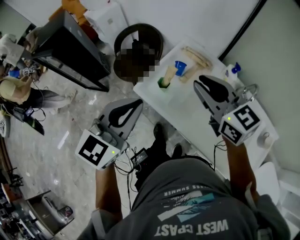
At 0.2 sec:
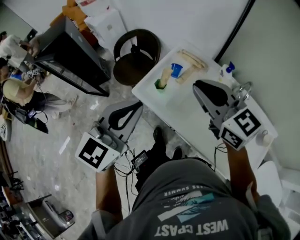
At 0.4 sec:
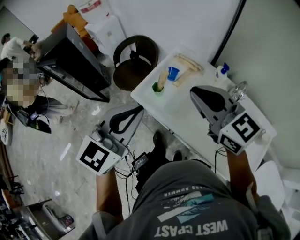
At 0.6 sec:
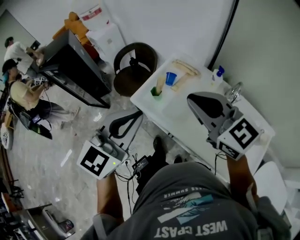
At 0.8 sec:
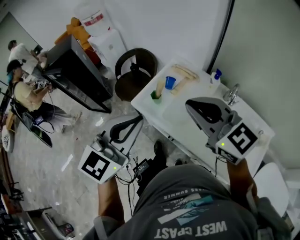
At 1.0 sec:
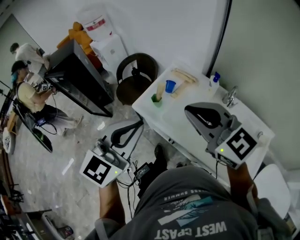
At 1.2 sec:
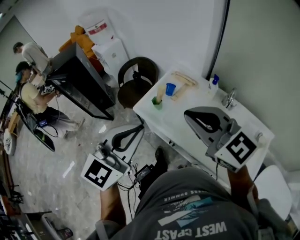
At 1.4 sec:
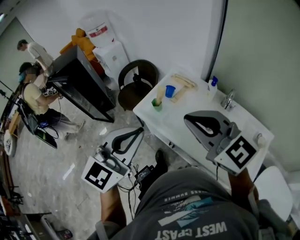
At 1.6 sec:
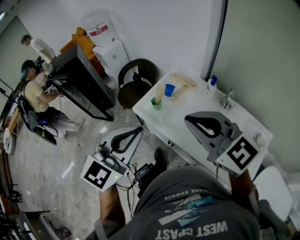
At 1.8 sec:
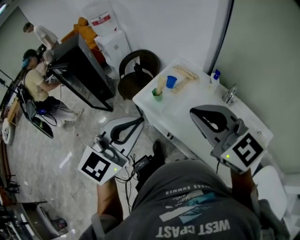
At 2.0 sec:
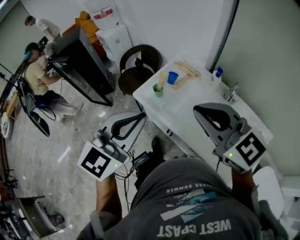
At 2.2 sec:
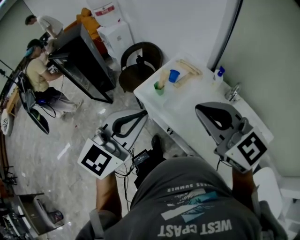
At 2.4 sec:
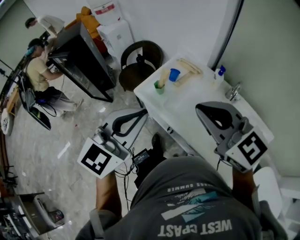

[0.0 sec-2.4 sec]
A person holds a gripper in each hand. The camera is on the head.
0.0 sec to 1.2 sec: The left gripper heads backward, upward and to the right, covering approximately 15 cm. The right gripper heads backward and upward, covering approximately 20 cm.
1.2 sec to 2.4 sec: The grippers make only small movements.

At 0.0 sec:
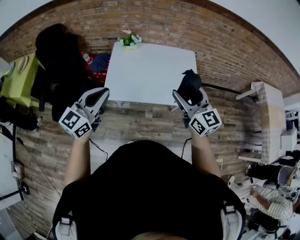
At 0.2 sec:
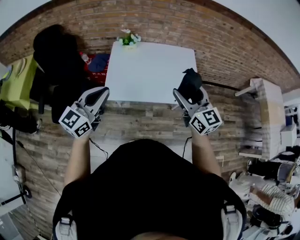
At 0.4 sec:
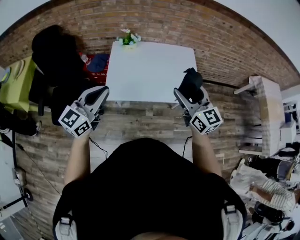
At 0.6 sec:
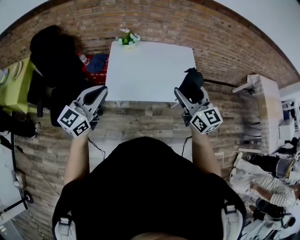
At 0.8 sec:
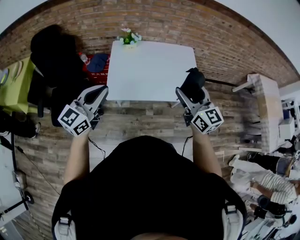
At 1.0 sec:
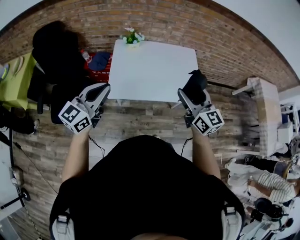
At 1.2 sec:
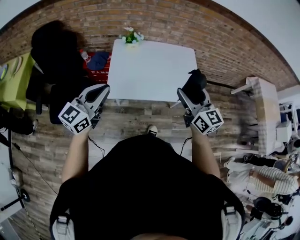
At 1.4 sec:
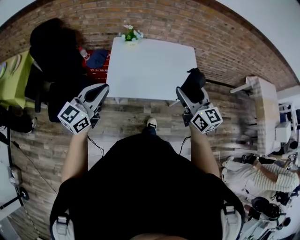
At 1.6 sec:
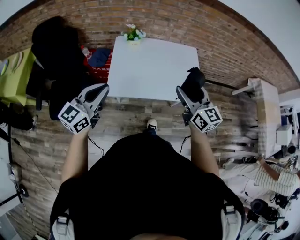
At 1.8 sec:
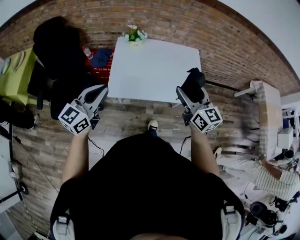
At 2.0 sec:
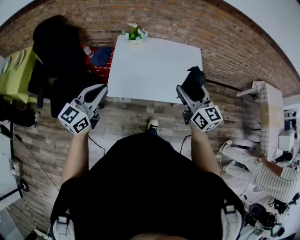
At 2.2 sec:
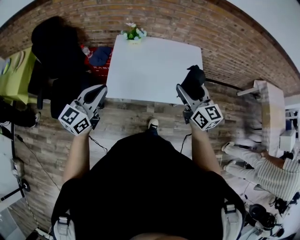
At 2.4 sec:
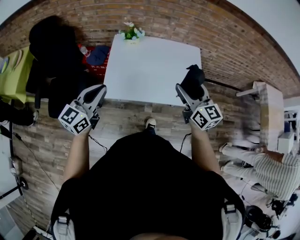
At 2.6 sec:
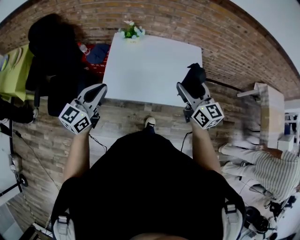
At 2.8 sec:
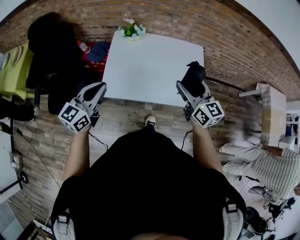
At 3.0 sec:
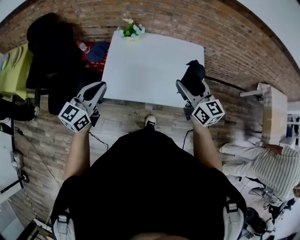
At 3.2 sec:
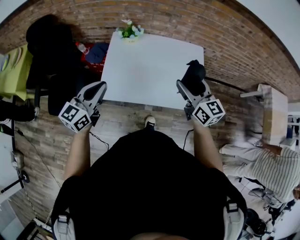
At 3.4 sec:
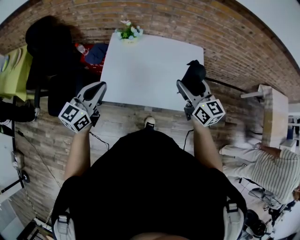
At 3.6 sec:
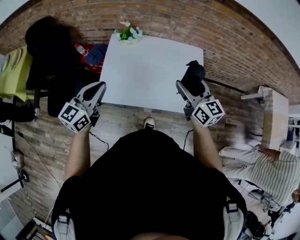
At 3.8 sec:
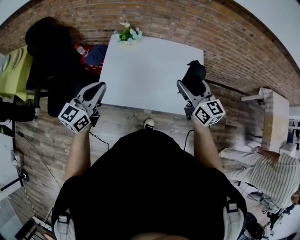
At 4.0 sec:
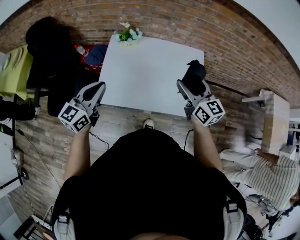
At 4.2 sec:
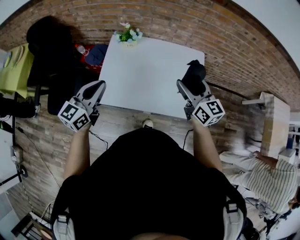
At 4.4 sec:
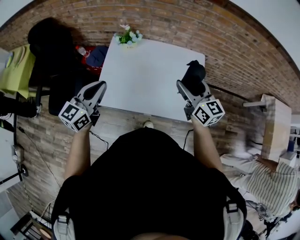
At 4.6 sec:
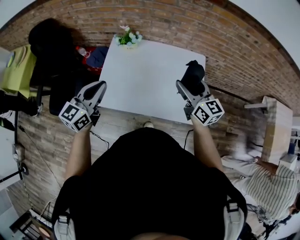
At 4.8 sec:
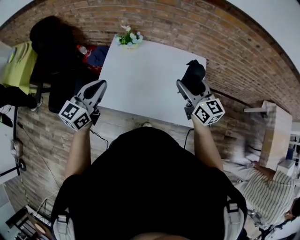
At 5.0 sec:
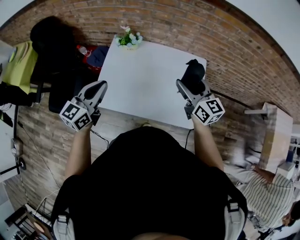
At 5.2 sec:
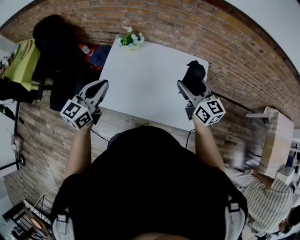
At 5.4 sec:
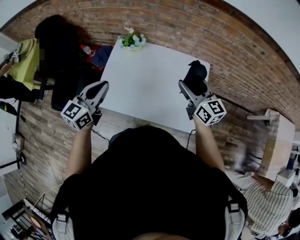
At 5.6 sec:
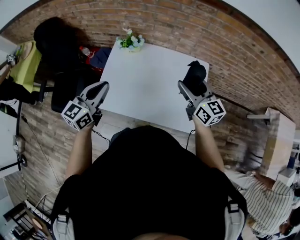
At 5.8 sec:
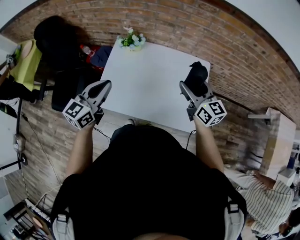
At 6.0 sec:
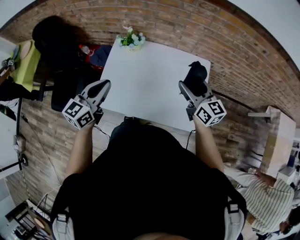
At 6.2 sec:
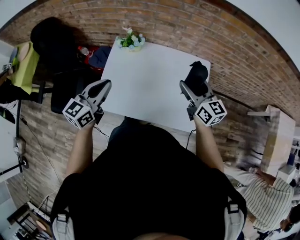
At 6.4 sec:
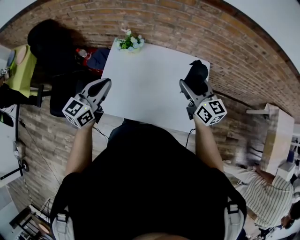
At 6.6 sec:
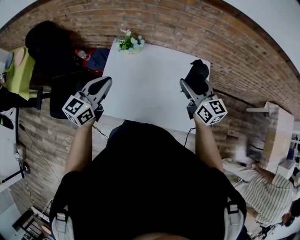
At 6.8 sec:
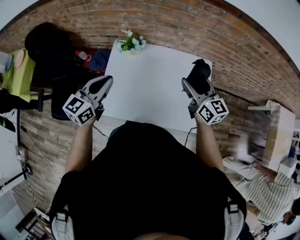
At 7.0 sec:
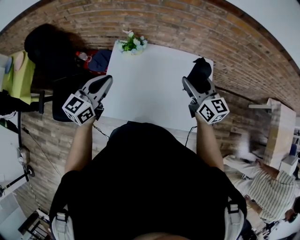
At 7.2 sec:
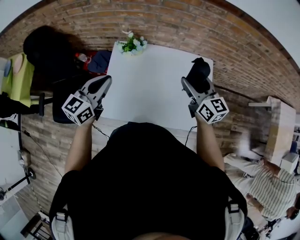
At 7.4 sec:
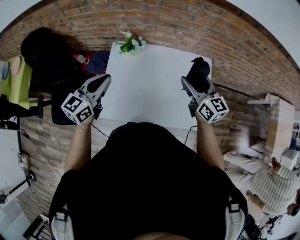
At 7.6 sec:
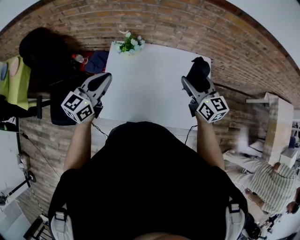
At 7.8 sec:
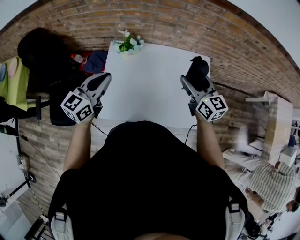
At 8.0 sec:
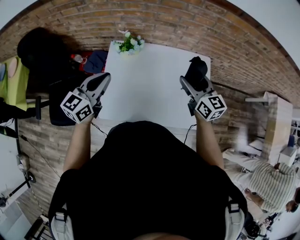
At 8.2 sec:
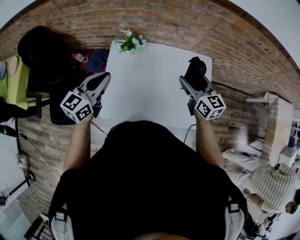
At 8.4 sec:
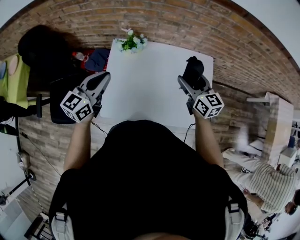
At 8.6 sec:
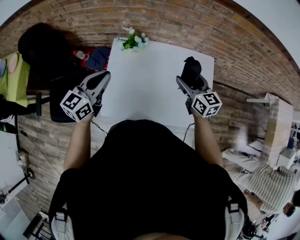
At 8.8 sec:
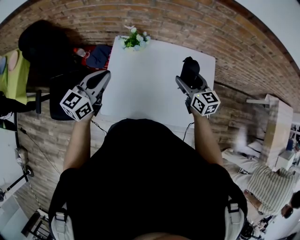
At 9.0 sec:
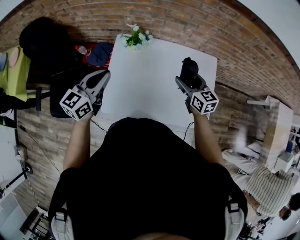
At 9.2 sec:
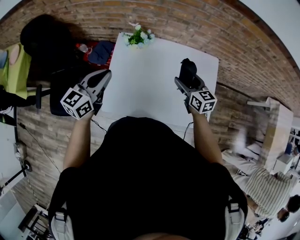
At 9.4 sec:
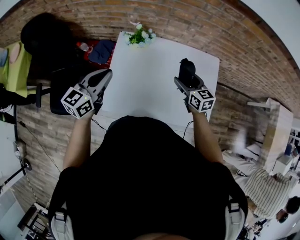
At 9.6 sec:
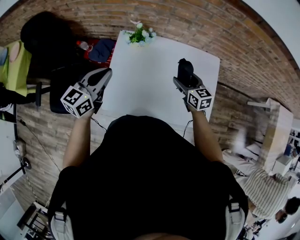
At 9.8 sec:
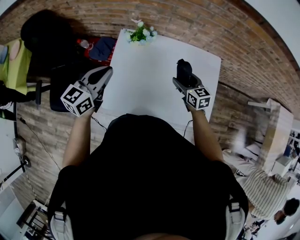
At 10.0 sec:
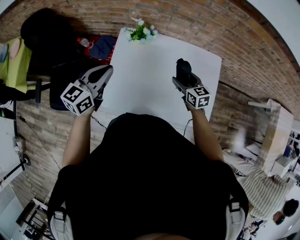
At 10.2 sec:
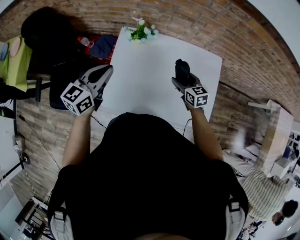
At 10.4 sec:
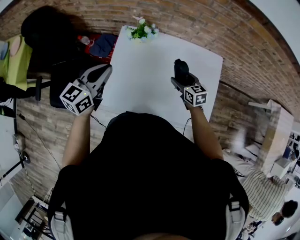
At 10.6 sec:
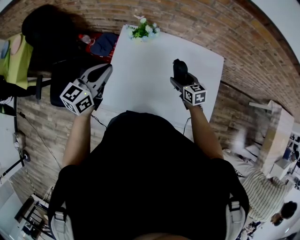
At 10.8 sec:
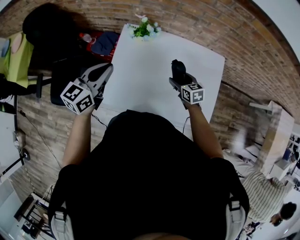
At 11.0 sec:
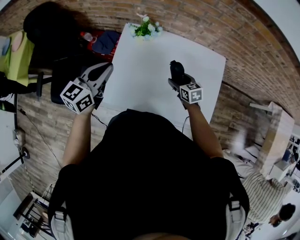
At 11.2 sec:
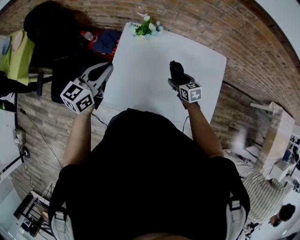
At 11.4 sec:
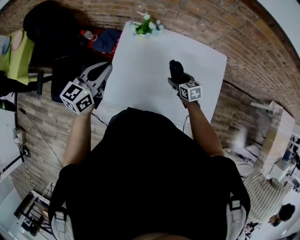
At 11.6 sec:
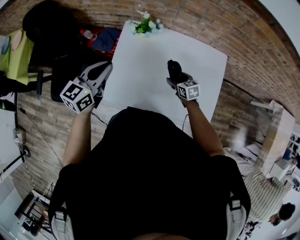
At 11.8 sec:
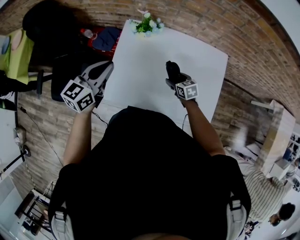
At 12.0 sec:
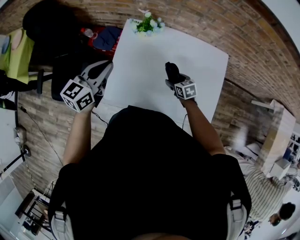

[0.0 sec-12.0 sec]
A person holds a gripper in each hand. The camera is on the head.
0.0 sec to 1.6 sec: The two grippers go roughly 5 cm to the left.
1.6 sec to 3.0 sec: The left gripper moves forward and to the right, some 10 cm; the right gripper goes about 15 cm forward.
3.0 sec to 4.4 sec: Both grippers move forward and to the right, approximately 10 cm.
4.4 sec to 6.0 sec: The left gripper shifts by approximately 5 cm. Meanwhile the right gripper moves forward, about 5 cm.
6.0 sec to 7.6 sec: The right gripper heads forward and to the left, covering about 10 cm. Meanwhile the left gripper is displaced forward and to the left by approximately 10 cm.
7.6 sec to 9.0 sec: The right gripper travels downward by some 10 cm.
9.0 sec to 10.4 sec: The right gripper shifts about 10 cm downward.
10.4 sec to 12.0 sec: The right gripper goes roughly 10 cm downward.

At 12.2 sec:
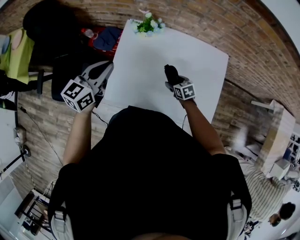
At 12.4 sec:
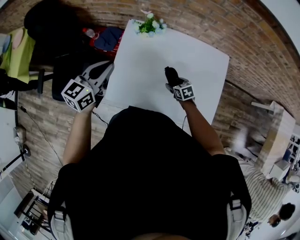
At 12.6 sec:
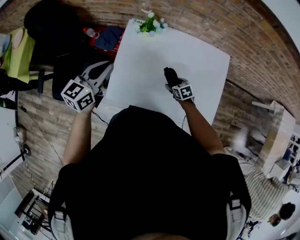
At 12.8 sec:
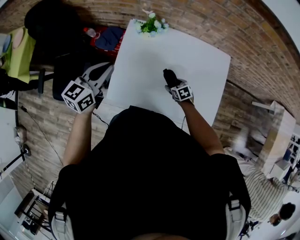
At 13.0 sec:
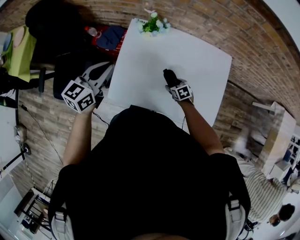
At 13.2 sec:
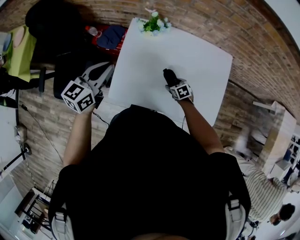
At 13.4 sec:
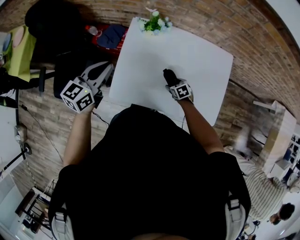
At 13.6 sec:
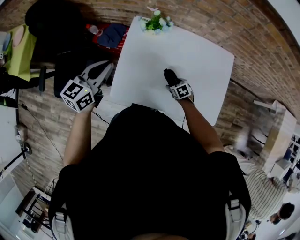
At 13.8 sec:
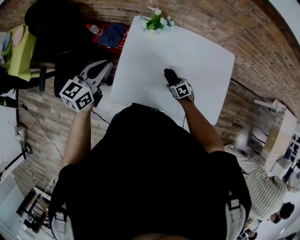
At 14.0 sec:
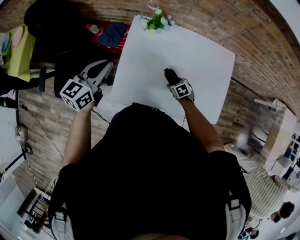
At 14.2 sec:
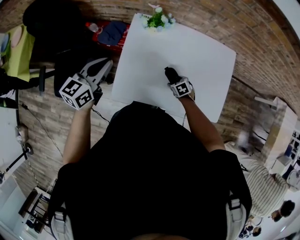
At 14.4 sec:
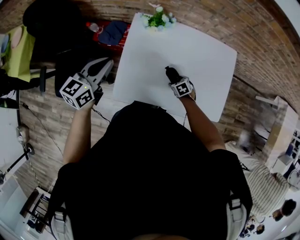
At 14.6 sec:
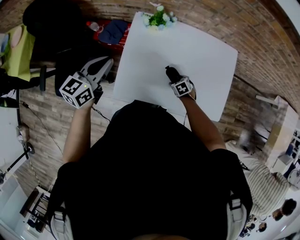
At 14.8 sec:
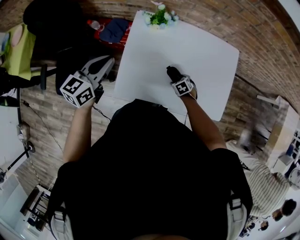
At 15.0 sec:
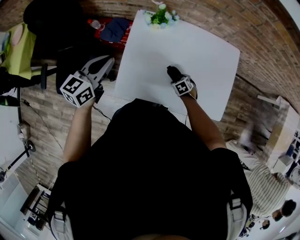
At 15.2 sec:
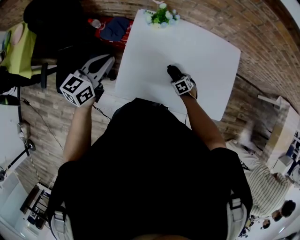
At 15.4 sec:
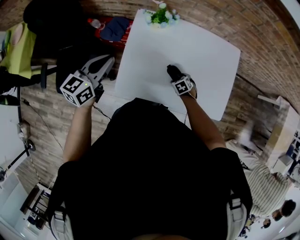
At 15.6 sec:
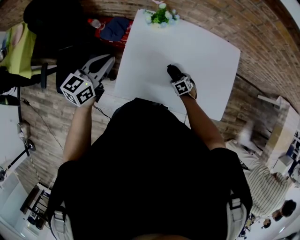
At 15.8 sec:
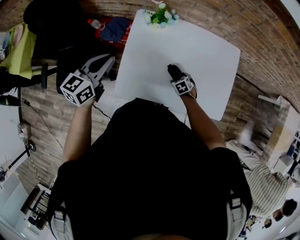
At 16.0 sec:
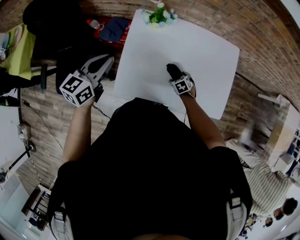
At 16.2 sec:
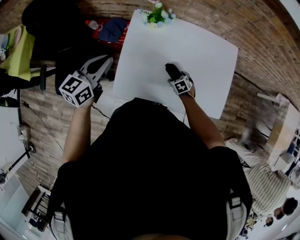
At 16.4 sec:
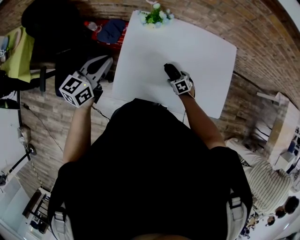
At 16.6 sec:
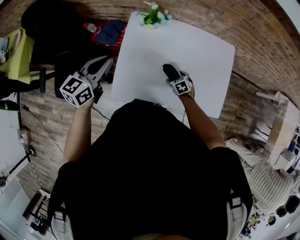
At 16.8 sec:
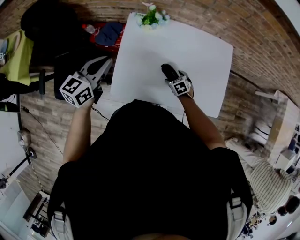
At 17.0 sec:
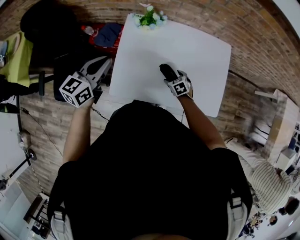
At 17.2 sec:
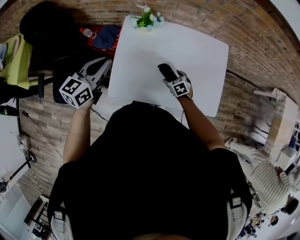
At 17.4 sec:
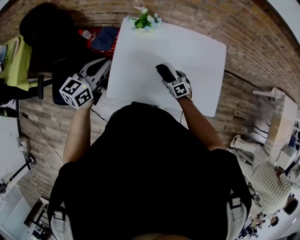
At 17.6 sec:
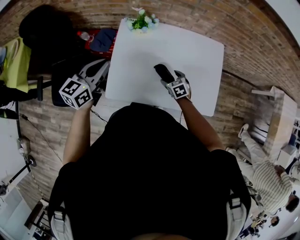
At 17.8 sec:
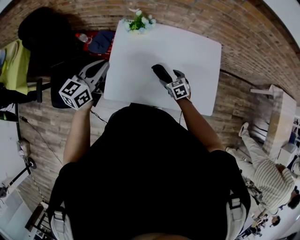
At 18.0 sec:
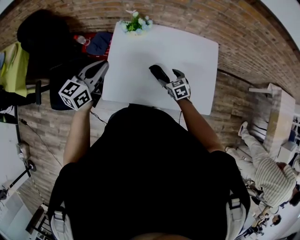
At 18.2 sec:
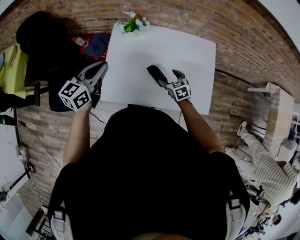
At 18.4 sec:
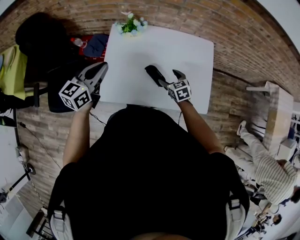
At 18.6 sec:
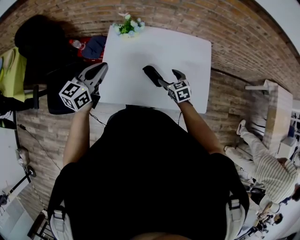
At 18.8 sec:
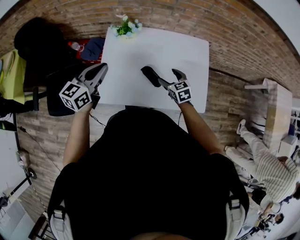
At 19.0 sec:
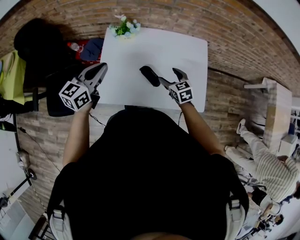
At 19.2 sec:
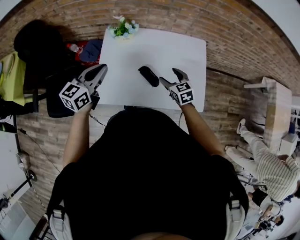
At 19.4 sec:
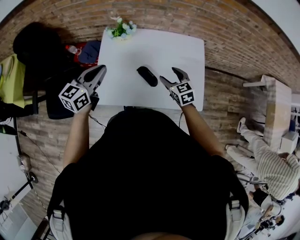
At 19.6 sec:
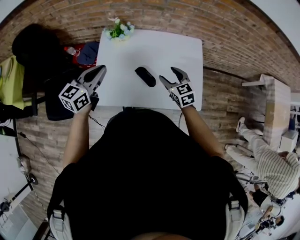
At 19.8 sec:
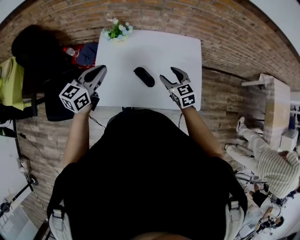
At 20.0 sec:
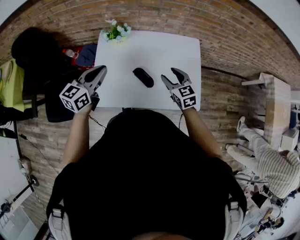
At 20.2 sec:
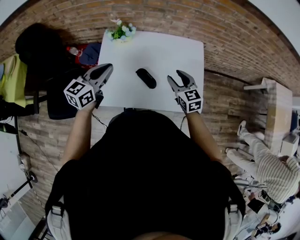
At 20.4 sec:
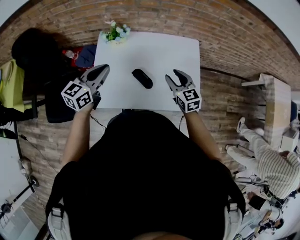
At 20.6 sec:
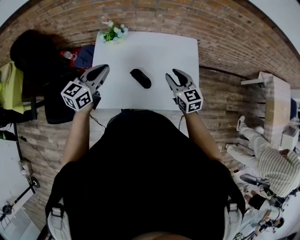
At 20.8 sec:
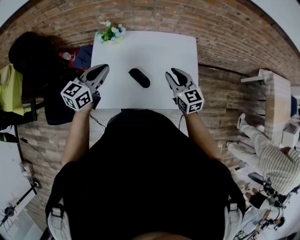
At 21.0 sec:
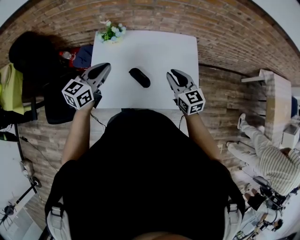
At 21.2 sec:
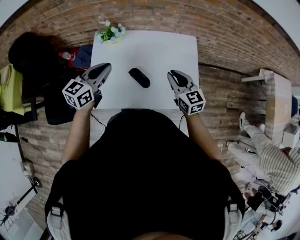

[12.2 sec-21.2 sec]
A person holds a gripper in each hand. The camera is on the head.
12.2 sec to 13.8 sec: The right gripper goes approximately 10 cm downward. Meanwhile the left gripper travels to the left by about 5 cm.
13.8 sec to 16.6 sec: There are only small adjustments of the grippers.
16.6 sec to 18.2 sec: The right gripper travels upward by about 15 cm, while the left gripper goes about 5 cm to the right.
18.2 sec to 19.8 sec: The right gripper travels upward and to the right by some 15 cm. The left gripper travels to the right by about 5 cm.
19.8 sec to 21.2 sec: The right gripper goes about 5 cm upward, and closes up. The left gripper heads to the right, covering some 5 cm.
